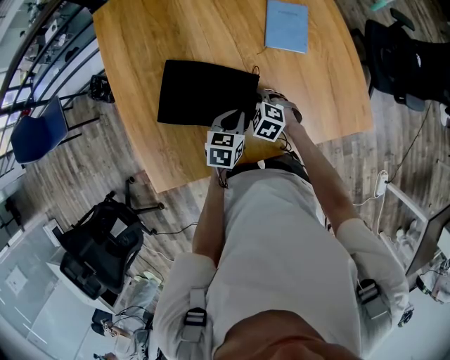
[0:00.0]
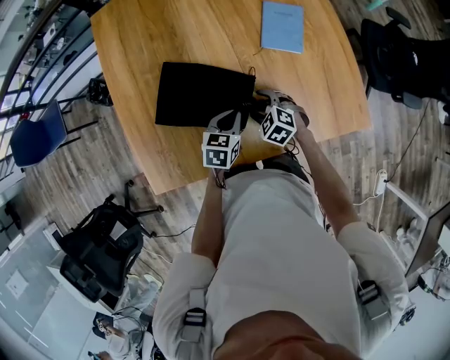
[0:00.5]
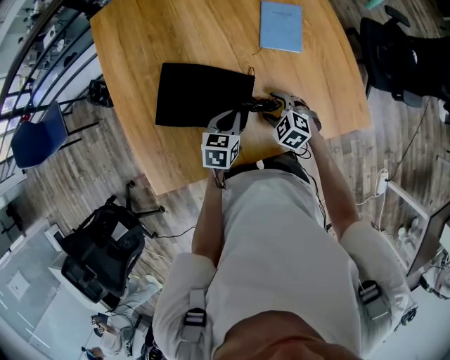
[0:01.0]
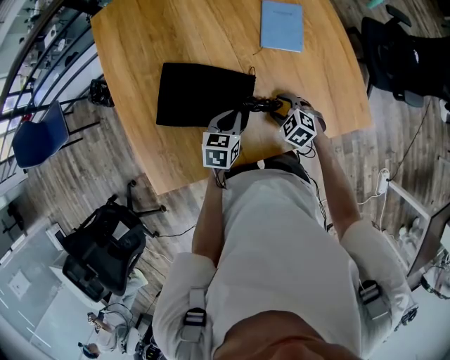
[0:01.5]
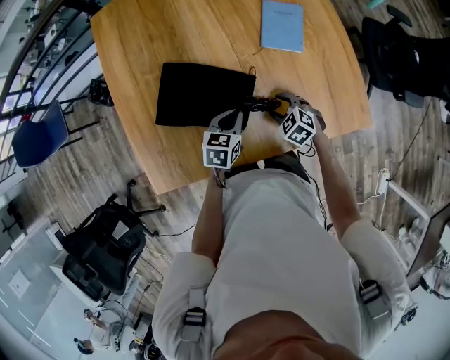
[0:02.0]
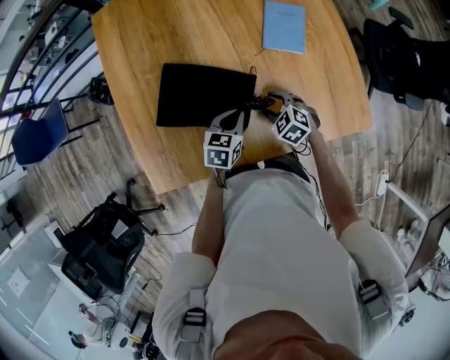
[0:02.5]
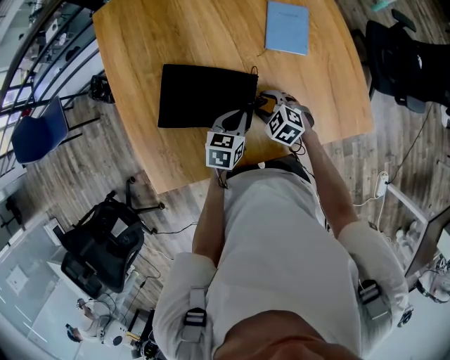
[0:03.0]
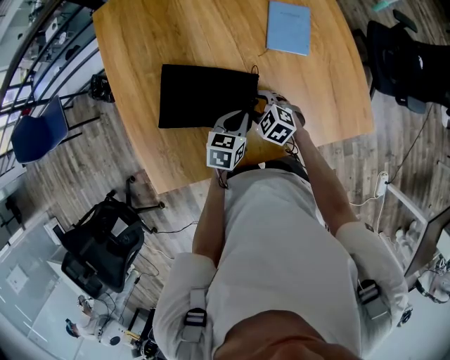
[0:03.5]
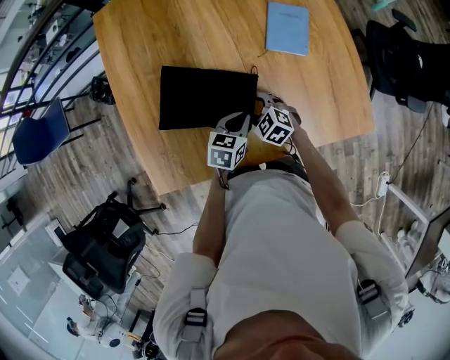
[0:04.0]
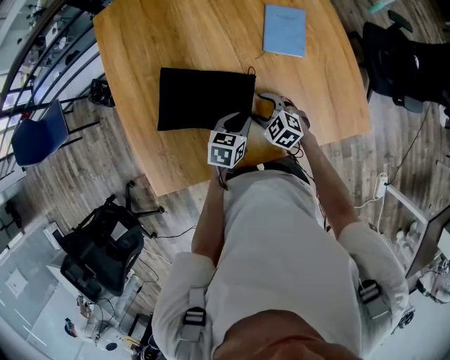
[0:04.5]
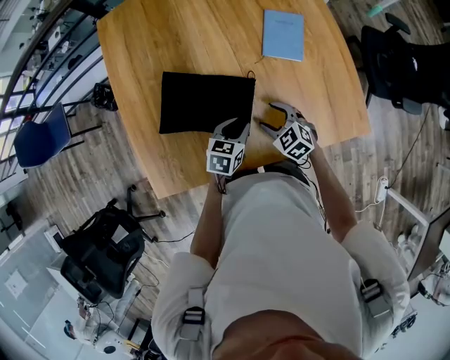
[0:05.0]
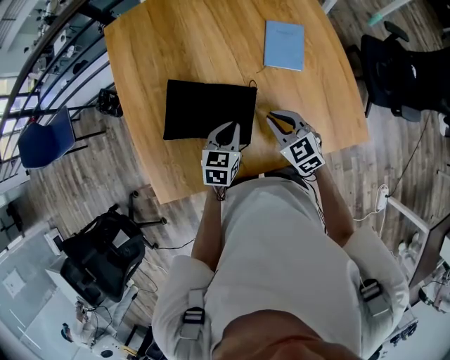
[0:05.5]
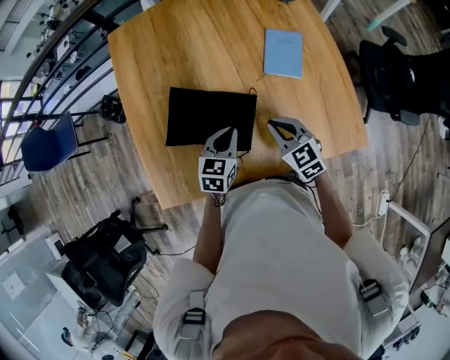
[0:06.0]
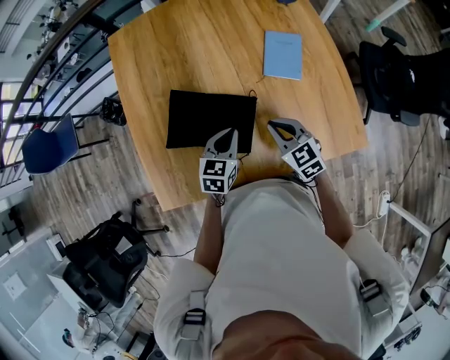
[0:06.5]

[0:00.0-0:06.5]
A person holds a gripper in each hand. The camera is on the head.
0:00.0 to 0:02.0: The right gripper shifts approximately 10 cm to the right.
0:02.0 to 0:04.5: The right gripper travels to the left by roughly 5 cm.
0:04.5 to 0:06.5: Both grippers travel together upward, approximately 10 cm. The right gripper rotates roughly 20 degrees, and closes.

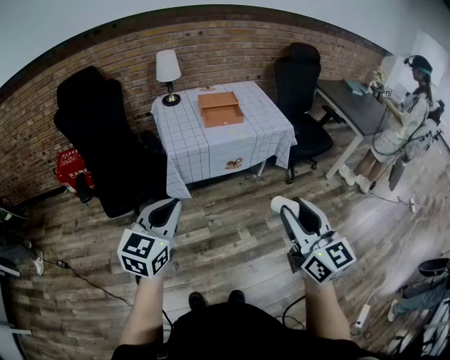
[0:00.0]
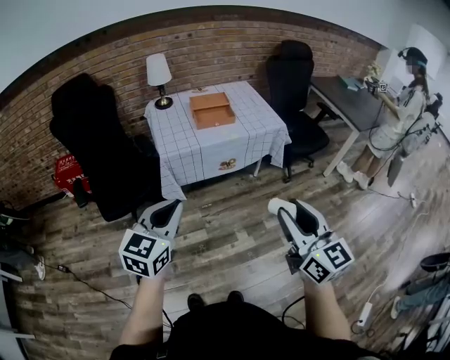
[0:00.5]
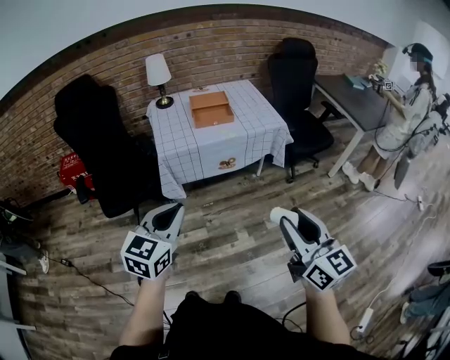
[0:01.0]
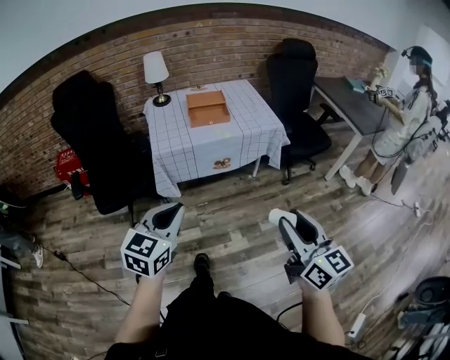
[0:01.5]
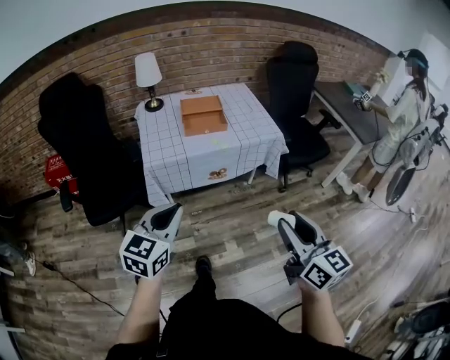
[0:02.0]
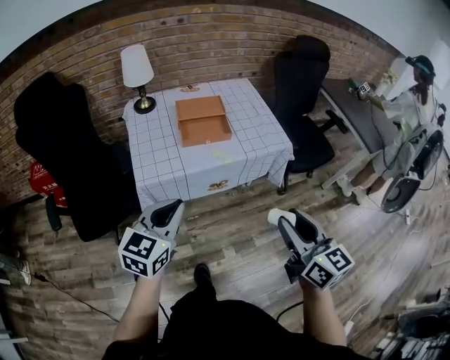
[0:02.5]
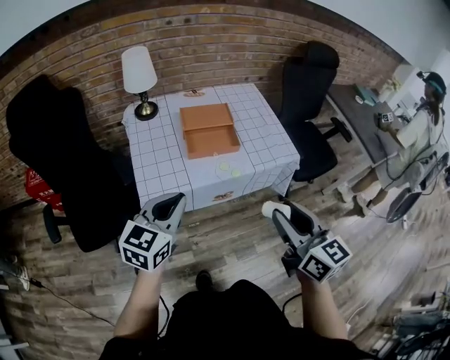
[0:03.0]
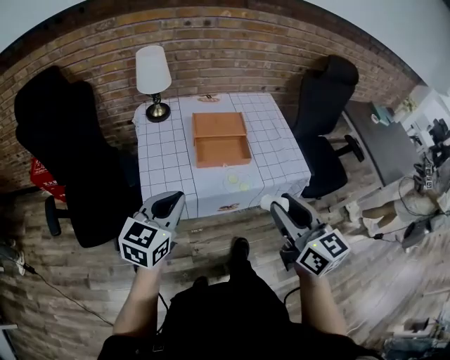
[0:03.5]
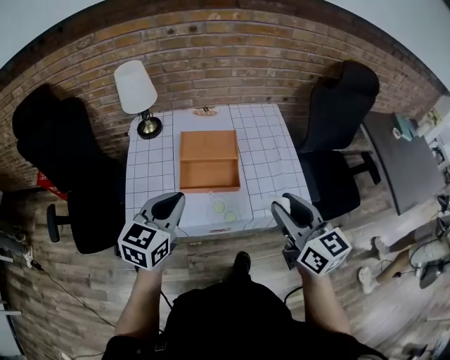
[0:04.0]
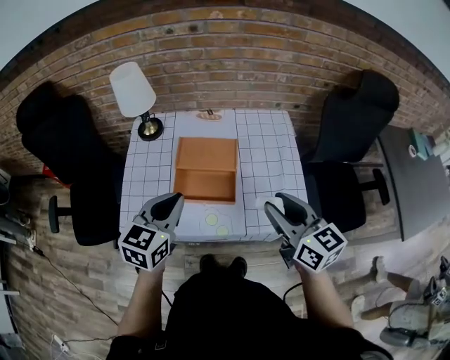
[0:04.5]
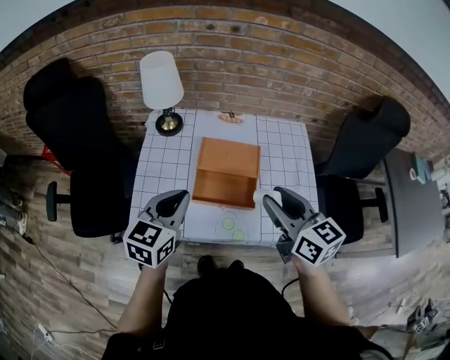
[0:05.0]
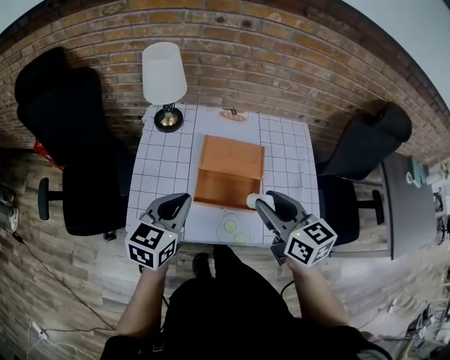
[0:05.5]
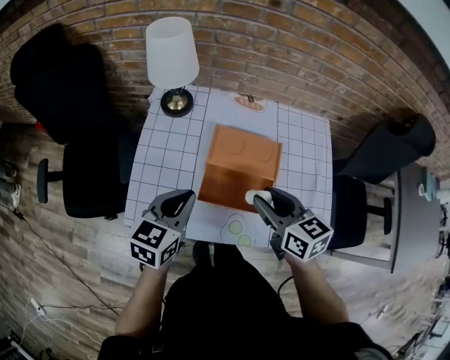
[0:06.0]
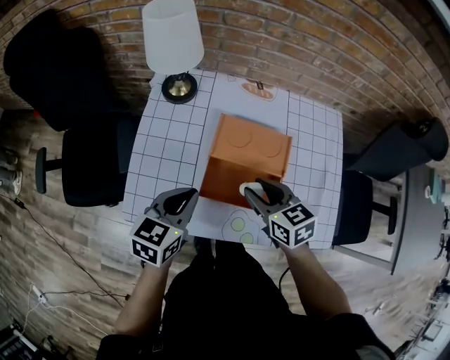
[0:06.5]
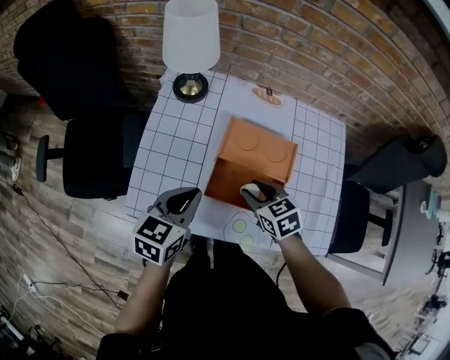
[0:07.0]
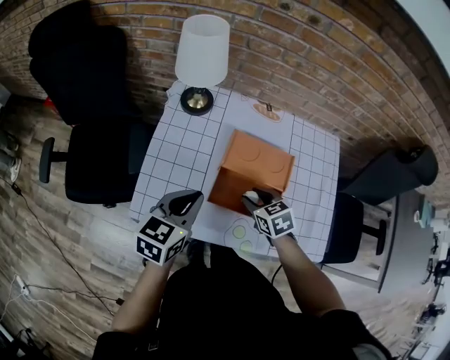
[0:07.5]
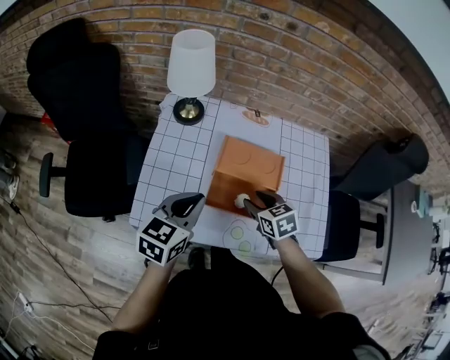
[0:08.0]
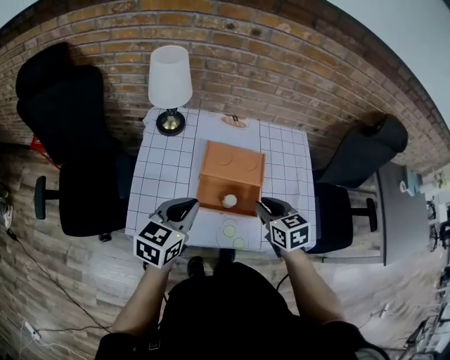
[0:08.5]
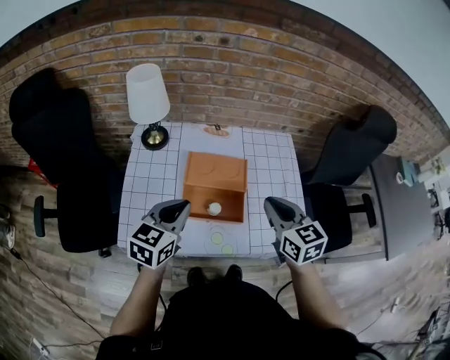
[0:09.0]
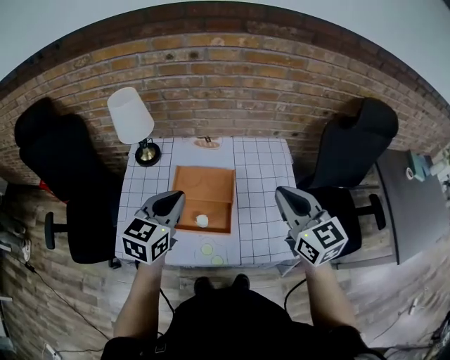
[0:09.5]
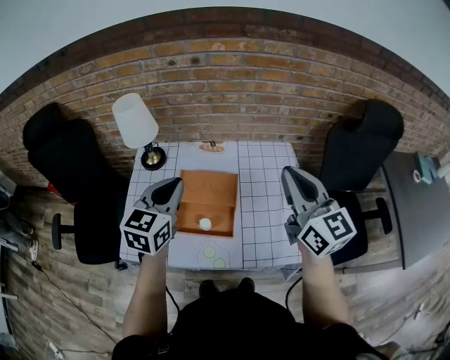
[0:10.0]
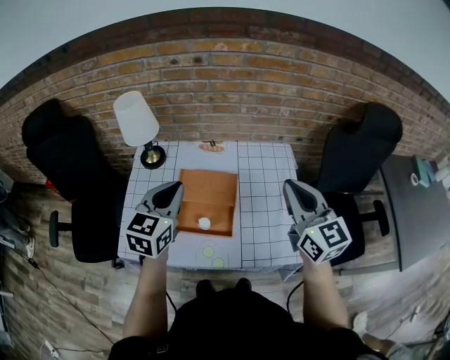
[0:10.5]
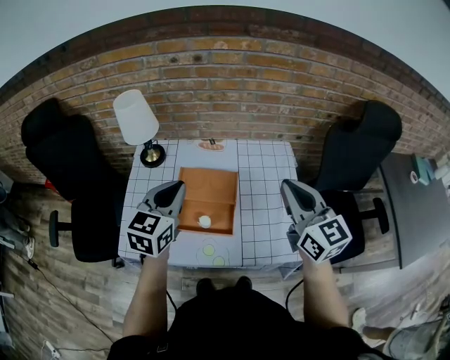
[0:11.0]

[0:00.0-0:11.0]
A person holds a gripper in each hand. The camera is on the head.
0:00.0 to 0:02.0: Both grippers move to the right and forward, about 15 cm.
0:02.0 to 0:03.5: The two grippers go some 35 cm forward.
0:03.5 to 0:05.5: Both grippers travel together forward, about 25 cm. The right gripper rotates about 20 degrees.
0:05.5 to 0:07.5: The right gripper is displaced downward and forward by roughly 25 cm, and tips its fingers downward by about 30 degrees; the left gripper moves downward, some 5 cm.
0:07.5 to 0:09.0: The left gripper heads to the right and upward, covering about 10 cm; the right gripper is displaced upward and to the right by roughly 25 cm, swivels roughly 40 degrees, and closes.
0:09.0 to 0:11.0: The left gripper shifts some 10 cm upward, forward and to the right; the right gripper heads upward and to the right, covering roughly 15 cm, and rotates about 20 degrees.

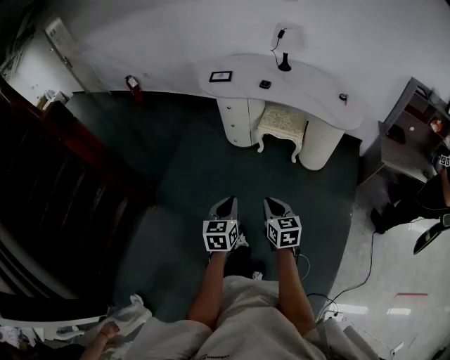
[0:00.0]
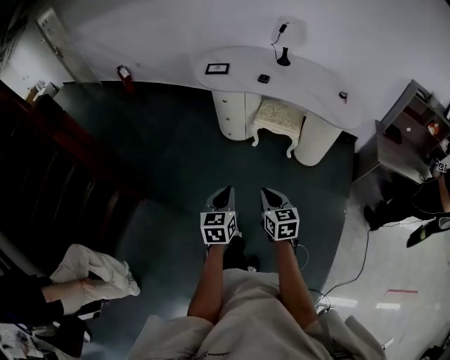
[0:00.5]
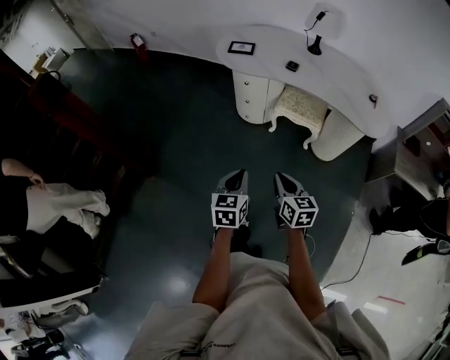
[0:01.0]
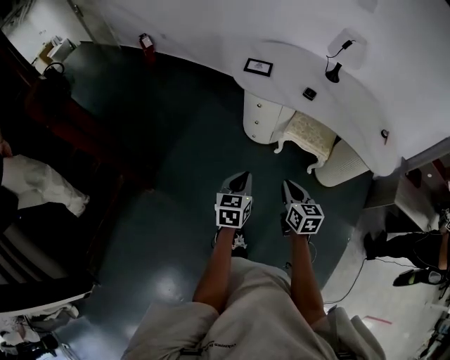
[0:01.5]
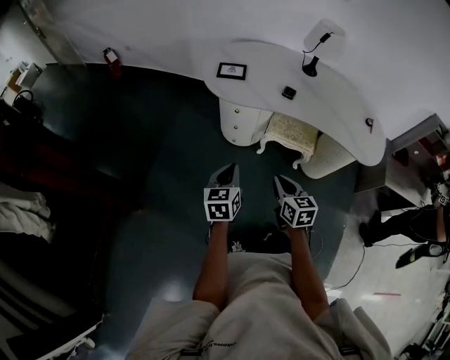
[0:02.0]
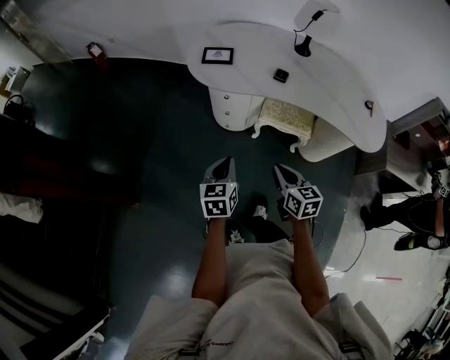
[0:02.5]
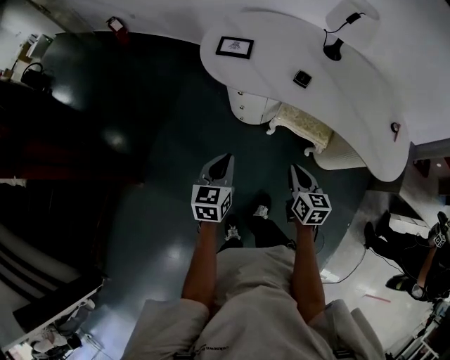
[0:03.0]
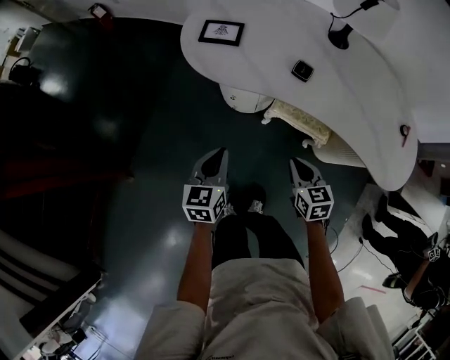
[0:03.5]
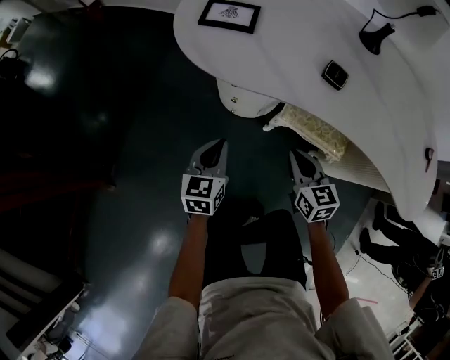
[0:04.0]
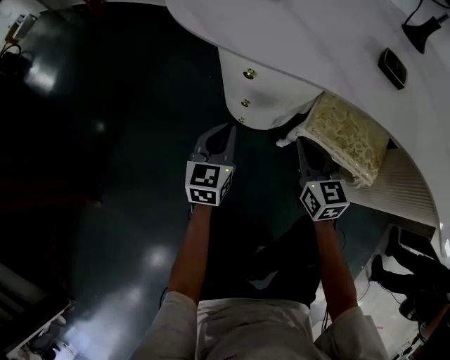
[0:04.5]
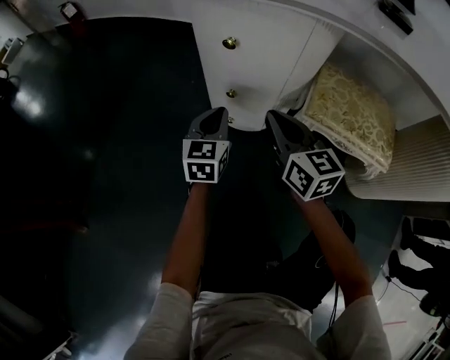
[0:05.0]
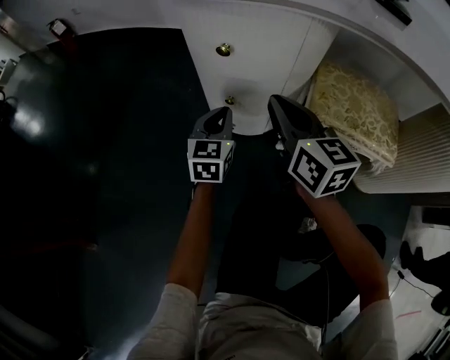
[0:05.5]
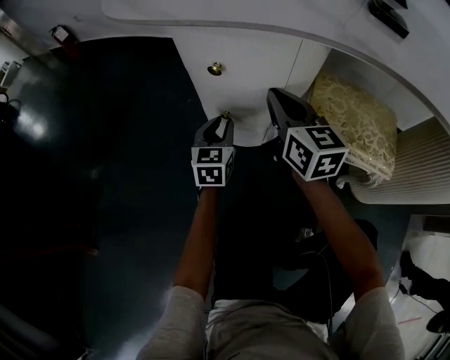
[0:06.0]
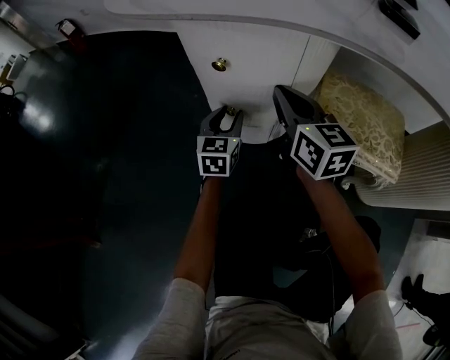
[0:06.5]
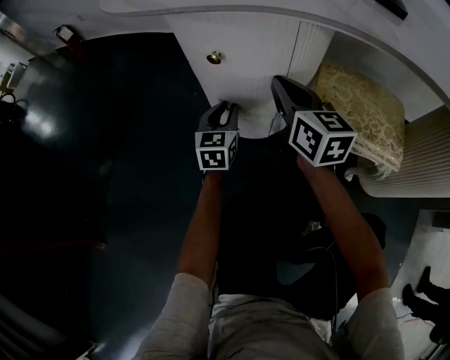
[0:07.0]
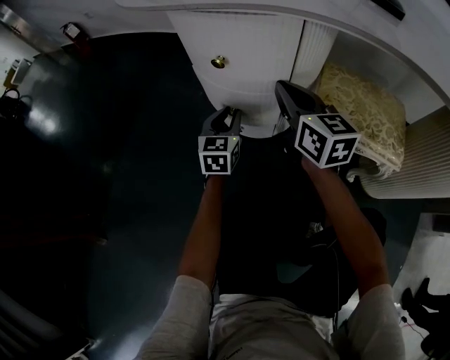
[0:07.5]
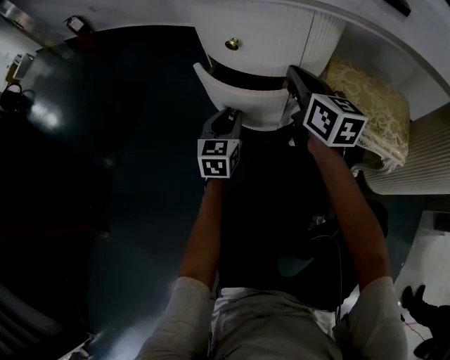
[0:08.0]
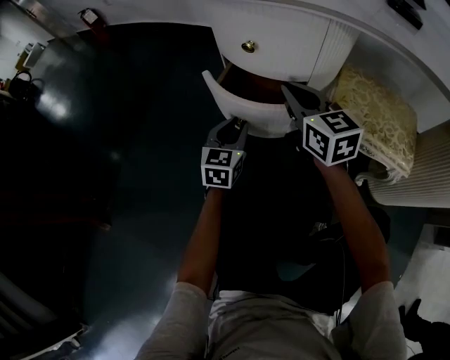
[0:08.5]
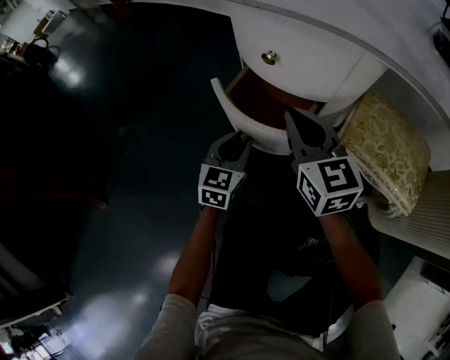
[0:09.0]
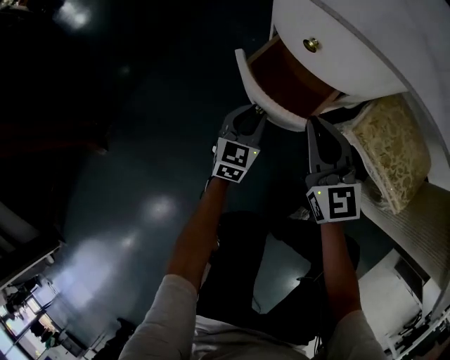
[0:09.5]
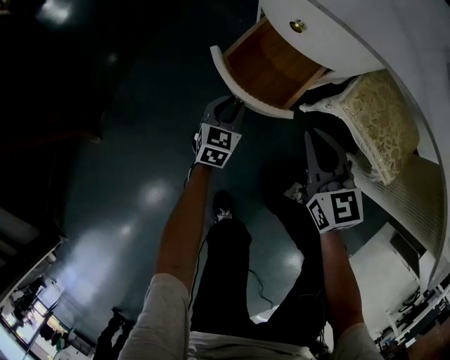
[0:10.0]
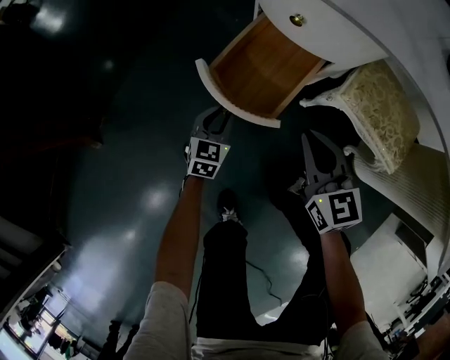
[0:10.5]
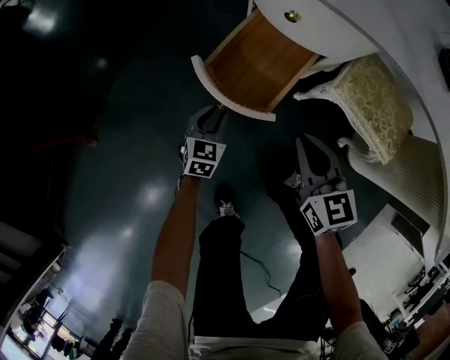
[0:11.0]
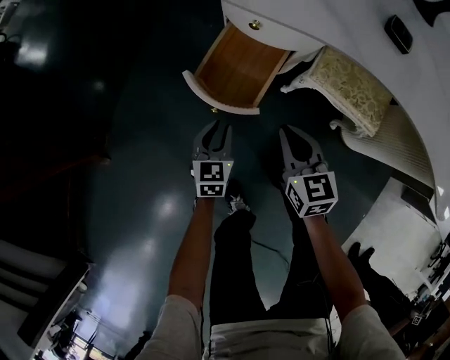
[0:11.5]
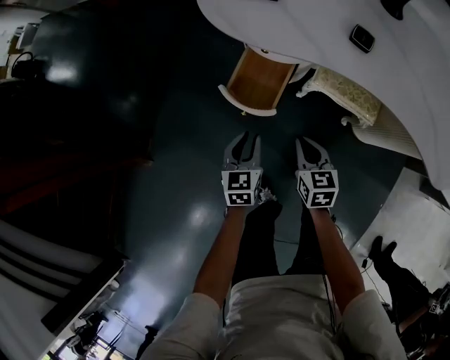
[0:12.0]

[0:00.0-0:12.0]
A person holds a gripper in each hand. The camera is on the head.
0:00.0 to 0:02.0: The grippers both shift forward by approximately 35 cm.
0:02.0 to 0:04.0: The left gripper goes about 35 cm downward and forward. The right gripper shifts some 35 cm forward and downward.
0:04.0 to 0:06.0: The left gripper is displaced downward and forward by approximately 35 cm; the right gripper goes about 25 cm forward and downward.
0:06.0 to 0:08.0: There are only small adjustments of the grippers.
0:08.0 to 0:10.0: The two grippers go some 15 cm backward and to the left. The right gripper changes its angle by some 30 degrees.
0:10.0 to 0:12.0: The left gripper shifts some 35 cm upward and backward, while the right gripper moves upward and backward, approximately 20 cm, and turns by approximately 30 degrees.
